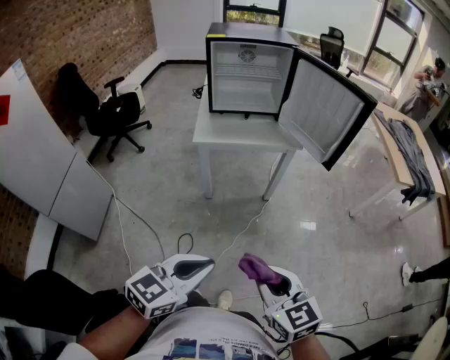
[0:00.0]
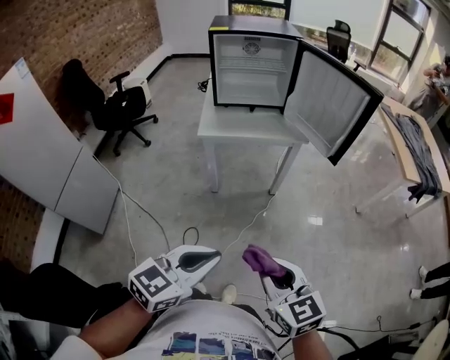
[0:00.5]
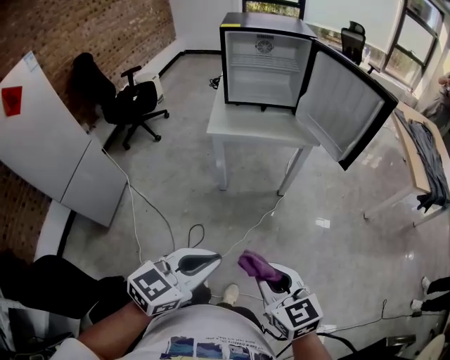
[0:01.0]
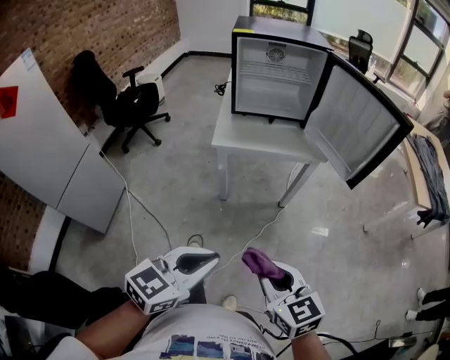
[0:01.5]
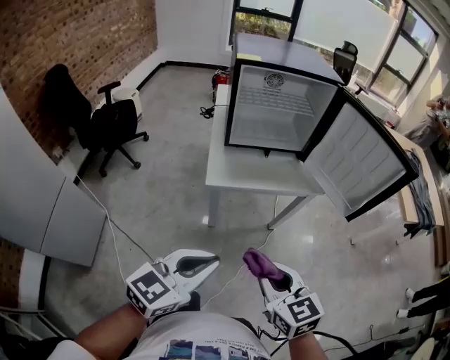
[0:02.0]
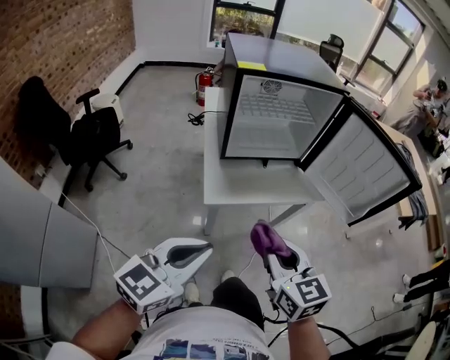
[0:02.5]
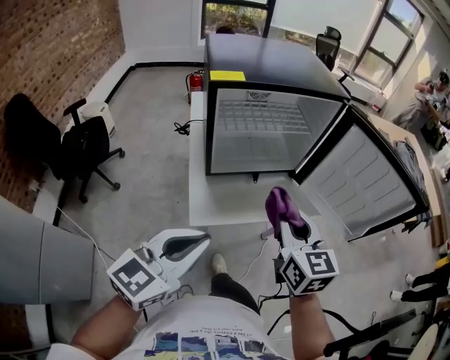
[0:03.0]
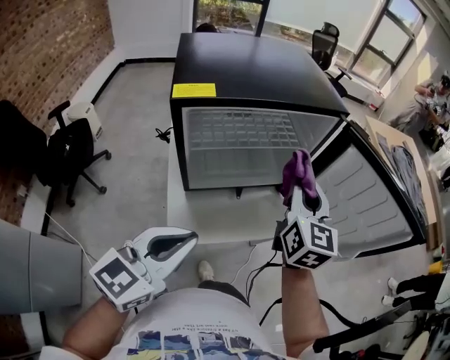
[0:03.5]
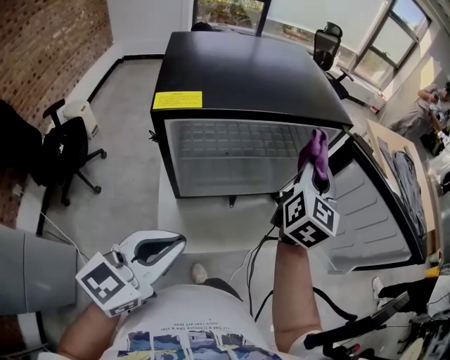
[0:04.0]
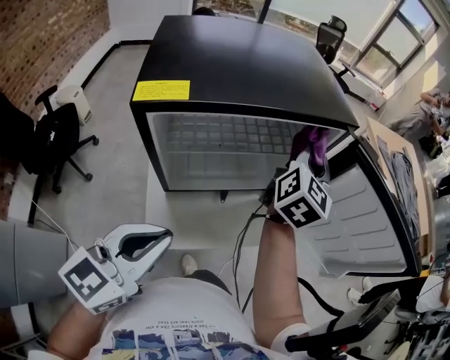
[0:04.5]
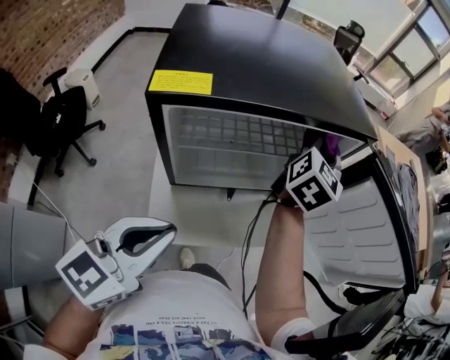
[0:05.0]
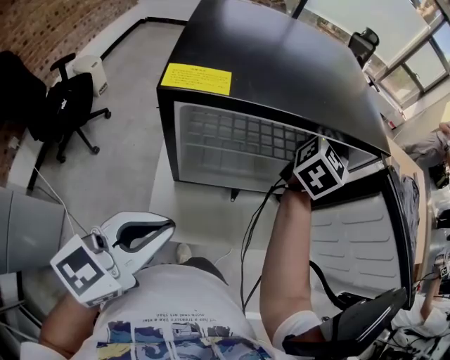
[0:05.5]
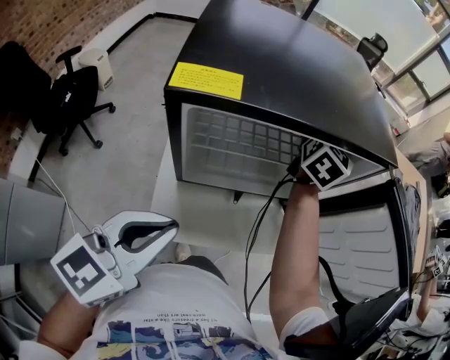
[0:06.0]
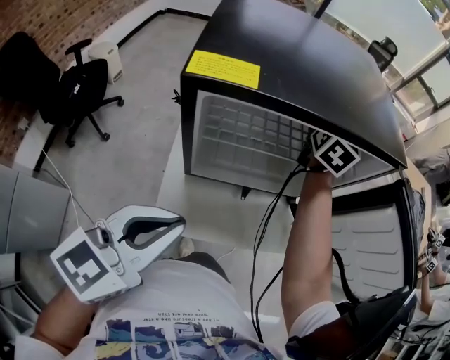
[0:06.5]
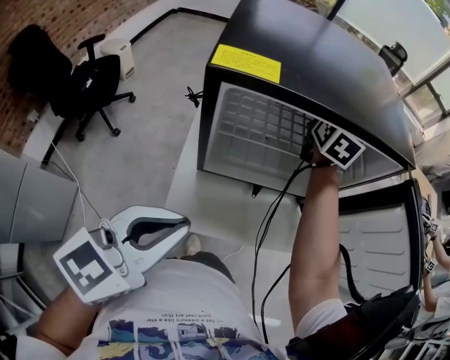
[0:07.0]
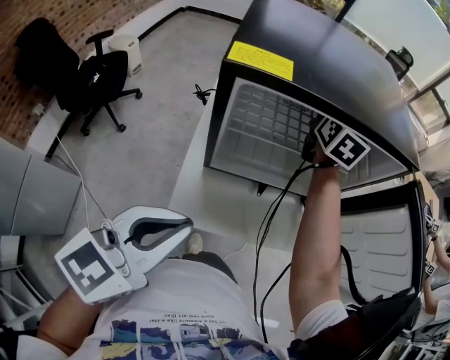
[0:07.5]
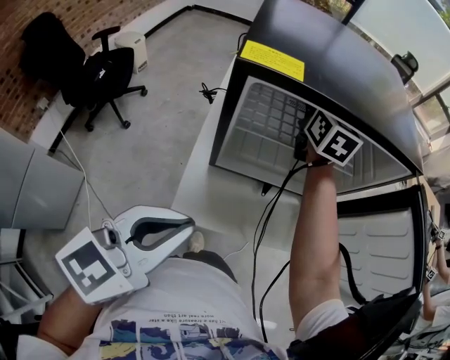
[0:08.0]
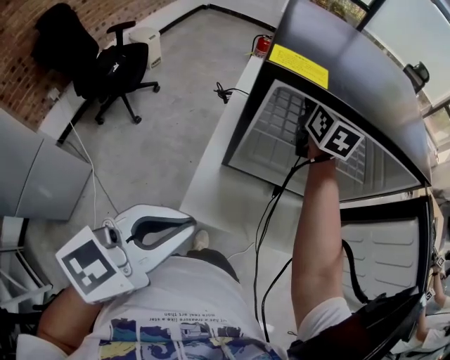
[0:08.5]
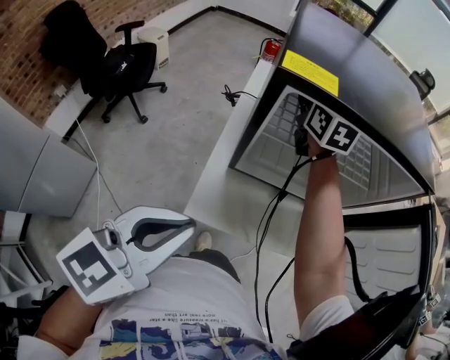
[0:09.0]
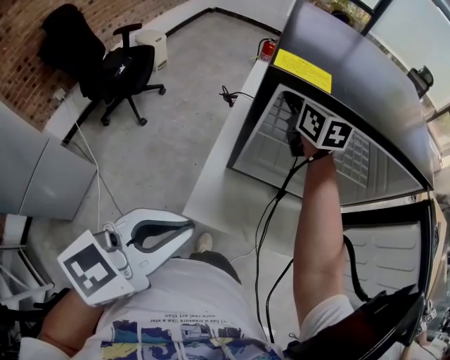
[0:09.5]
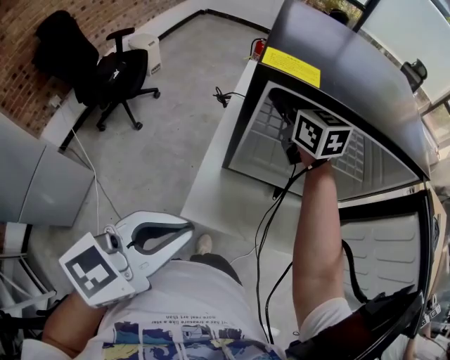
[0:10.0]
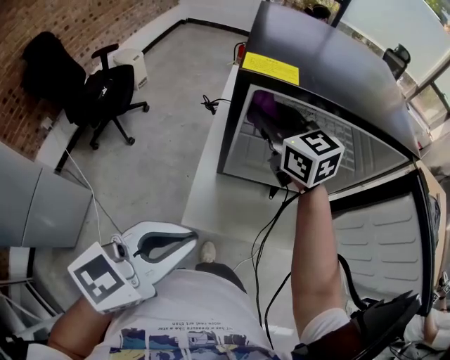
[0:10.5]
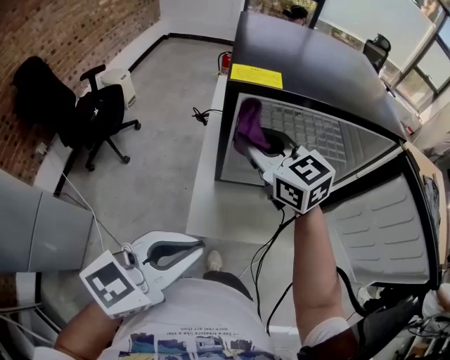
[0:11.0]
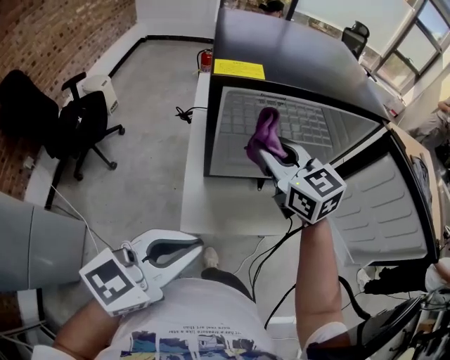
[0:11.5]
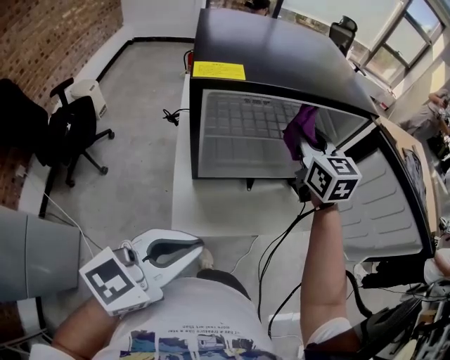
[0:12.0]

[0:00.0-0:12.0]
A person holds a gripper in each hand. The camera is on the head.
0:00.0 to 0:02.0: Both grippers travel together forward and to the left, about 25 cm.
0:02.0 to 0:04.0: The left gripper ends up roughly 35 cm from where it was; the right gripper moves some 50 cm, and changes its angle by about 60 degrees.
0:04.0 to 0:06.0: The right gripper goes about 15 cm forward and to the left.
0:06.0 to 0:08.0: The right gripper heads to the left, covering roughly 15 cm, and changes its angle by roughly 40 degrees.
0:08.0 to 0:10.0: The right gripper shifts approximately 15 cm to the left and backward, and changes its angle by roughly 30 degrees.
0:10.0 to 0:12.0: The left gripper rotates roughly 20 degrees; the right gripper shifts by some 20 cm, and swivels about 30 degrees.

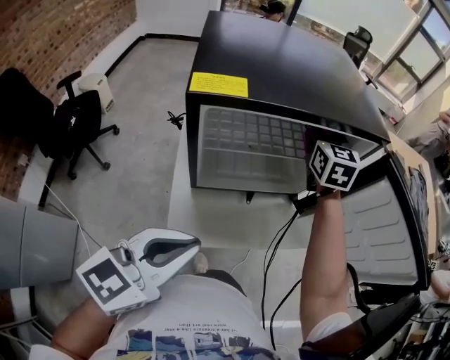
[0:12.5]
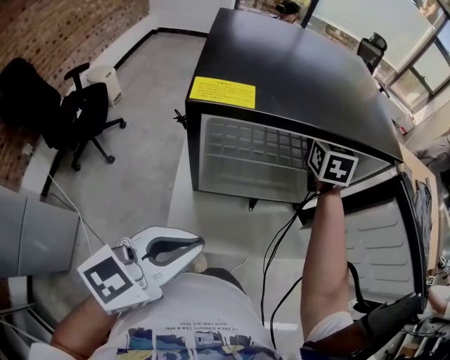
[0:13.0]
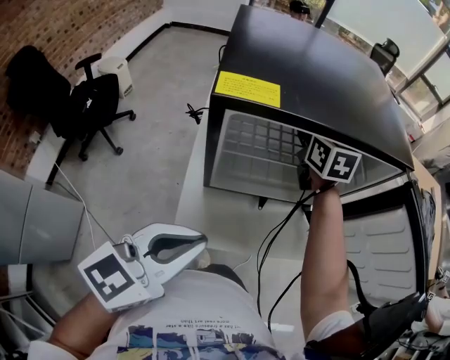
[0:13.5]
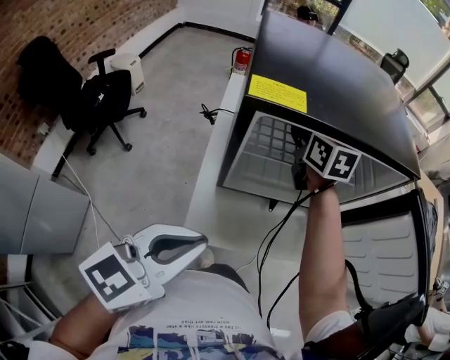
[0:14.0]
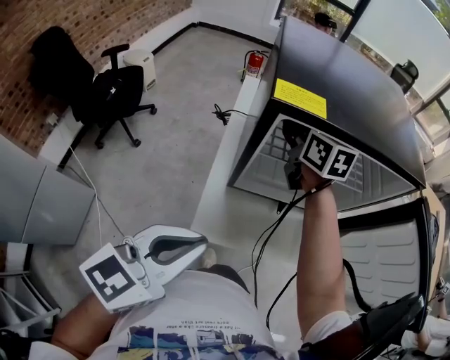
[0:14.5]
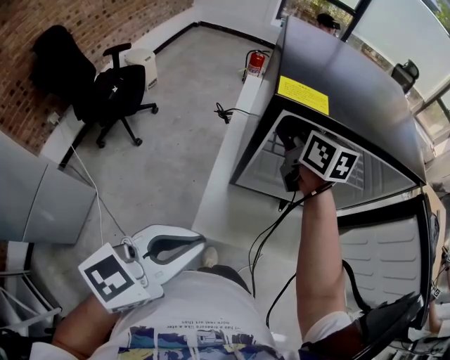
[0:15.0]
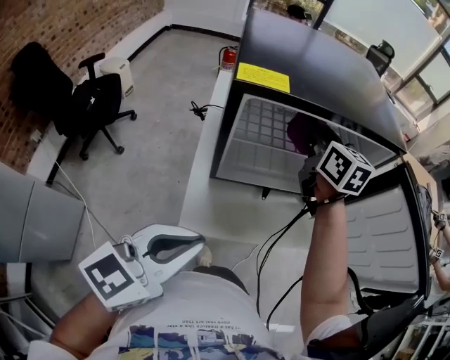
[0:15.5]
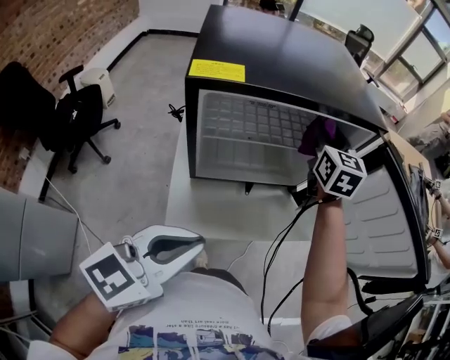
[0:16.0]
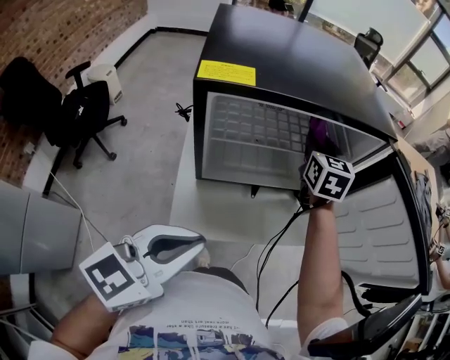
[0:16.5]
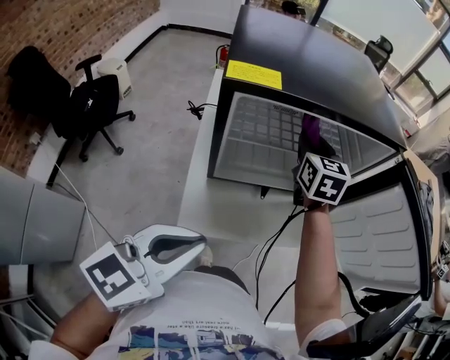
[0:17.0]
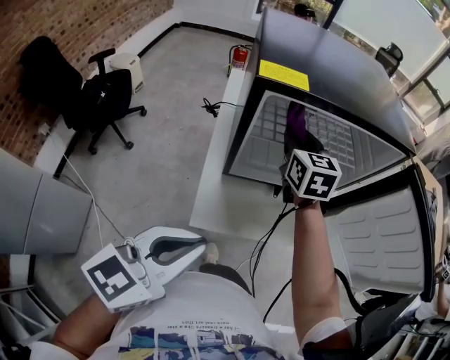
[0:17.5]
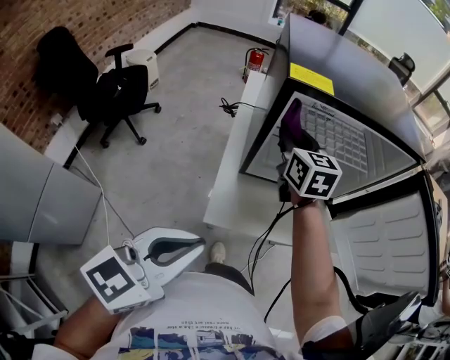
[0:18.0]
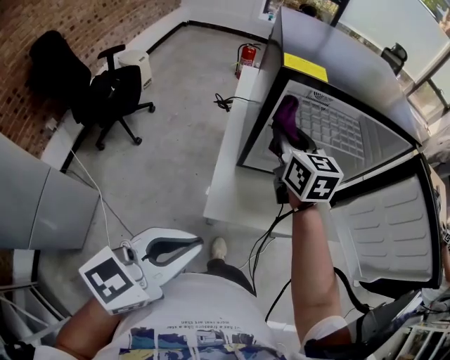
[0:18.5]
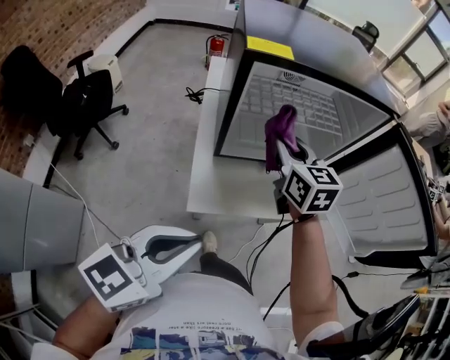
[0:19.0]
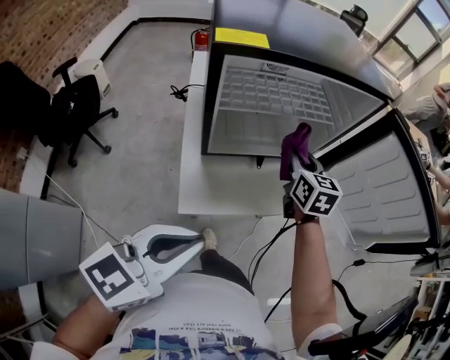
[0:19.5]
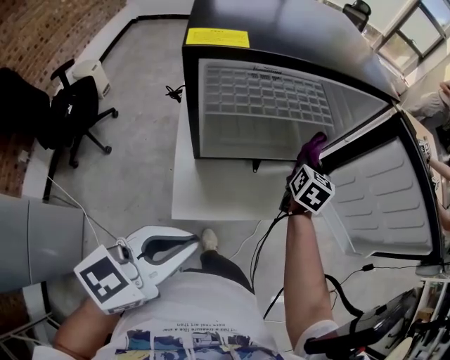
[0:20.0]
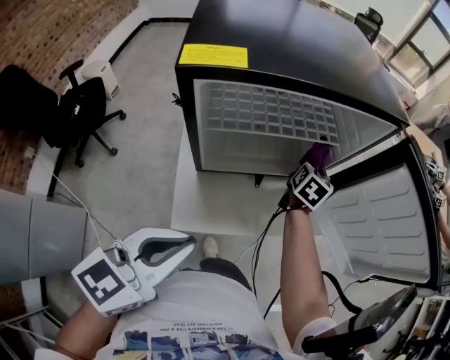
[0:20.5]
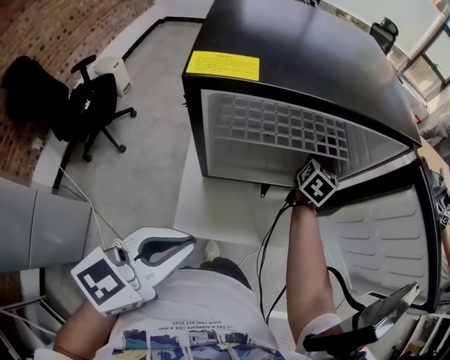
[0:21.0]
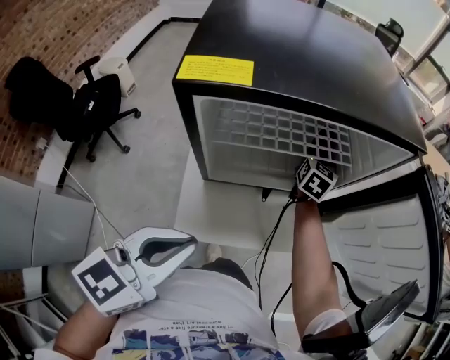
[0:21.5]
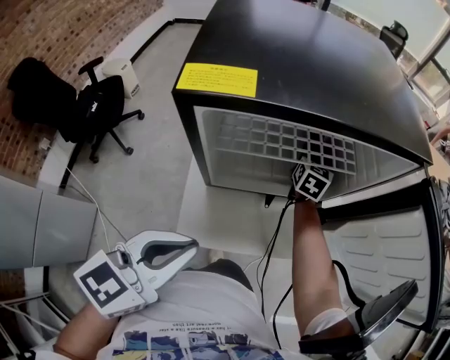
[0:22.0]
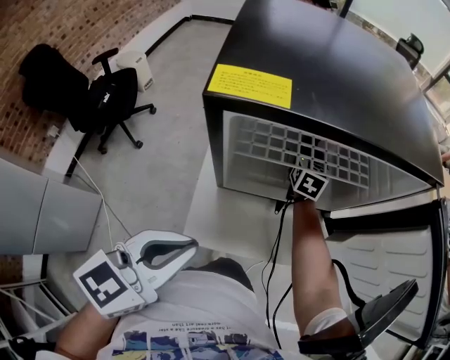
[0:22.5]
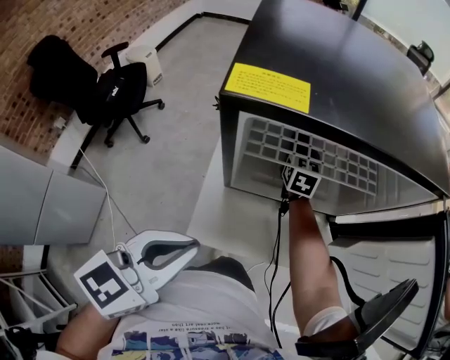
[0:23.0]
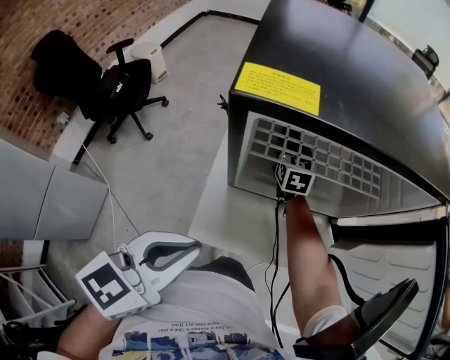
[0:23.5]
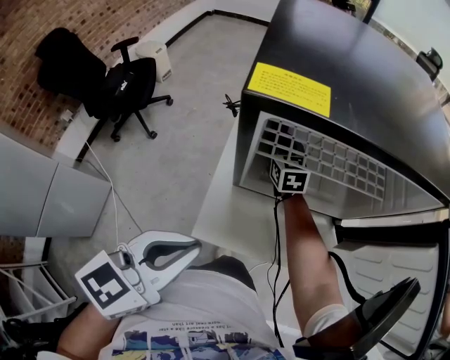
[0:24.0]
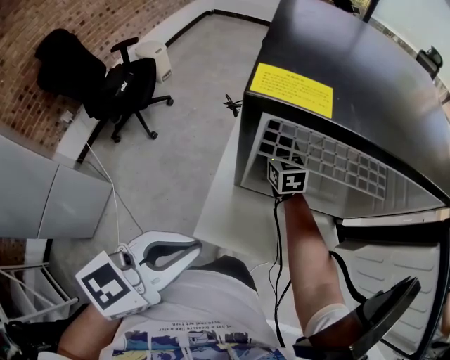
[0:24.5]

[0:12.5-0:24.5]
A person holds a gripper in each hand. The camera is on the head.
0:12.5 to 0:14.5: The right gripper is displaced to the left by some 20 cm, and swivels some 40 degrees. Meanwhile the left gripper moves roughly 5 cm.
0:14.5 to 0:16.5: The right gripper shifts by some 20 cm, and changes its angle by some 30 degrees. The left gripper ends up approximately 5 cm from where it was.
0:16.5 to 0:18.5: The left gripper moves backward and to the left, approximately 10 cm. The right gripper is displaced to the left and backward by about 25 cm, and swivels about 30 degrees.
0:18.5 to 0:20.5: The left gripper changes place by roughly 10 cm; the right gripper changes place by roughly 35 cm, and turns by approximately 50 degrees.
0:20.5 to 0:22.5: The right gripper moves to the left, approximately 20 cm, and turns by about 30 degrees.
0:22.5 to 0:24.5: The right gripper is displaced to the left by roughly 20 cm, and swivels approximately 40 degrees.

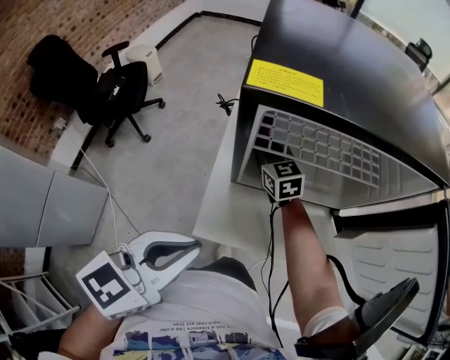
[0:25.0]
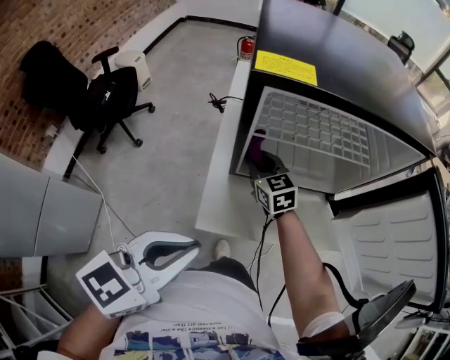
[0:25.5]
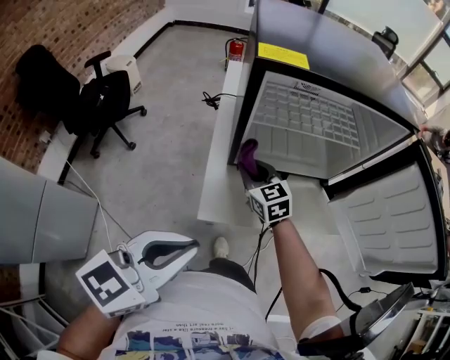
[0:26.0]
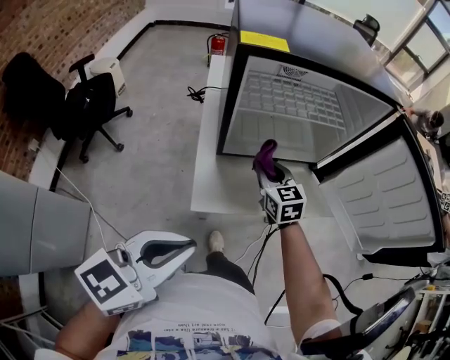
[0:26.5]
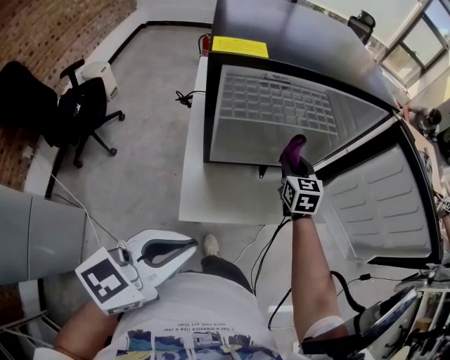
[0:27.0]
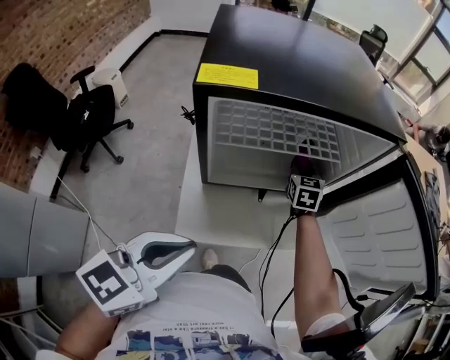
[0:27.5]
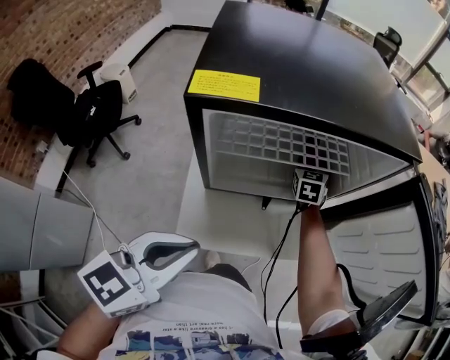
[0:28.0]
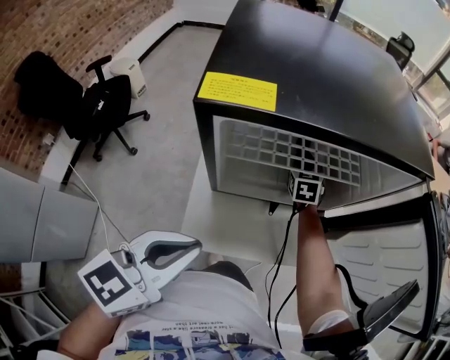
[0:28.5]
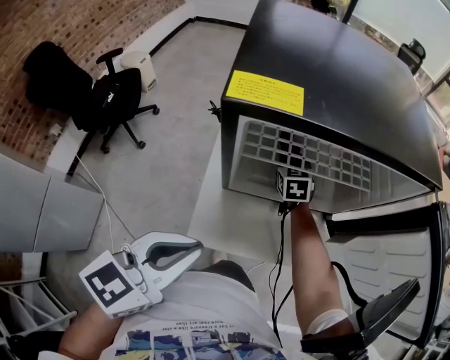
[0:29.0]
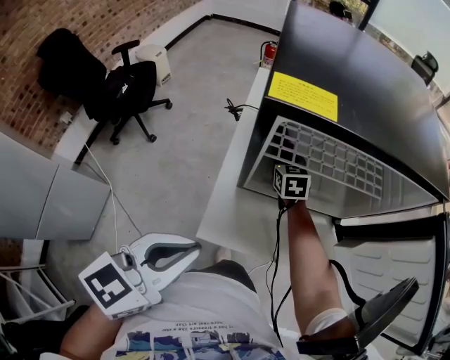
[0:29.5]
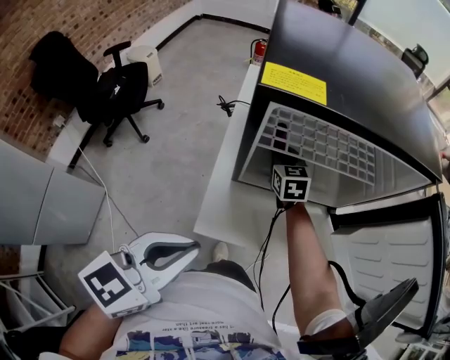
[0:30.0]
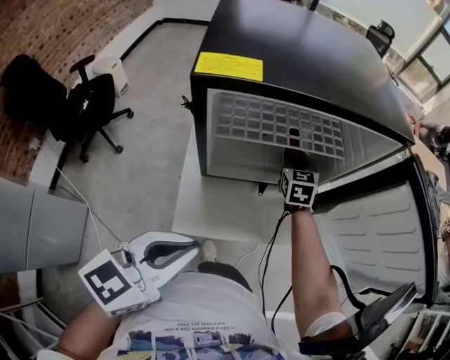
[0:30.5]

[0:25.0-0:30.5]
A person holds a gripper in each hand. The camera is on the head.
0:25.0 to 0:27.0: The right gripper is displaced to the right by roughly 25 cm, and turns by about 30 degrees. Meanwhile the left gripper heads backward, covering roughly 5 cm.
0:27.0 to 0:28.5: The left gripper travels forward by some 10 cm. The right gripper travels forward and to the left by approximately 15 cm.
0:28.5 to 0:30.5: The right gripper goes approximately 5 cm backward, and travels to the left and back again, approximately 15 cm each way.
